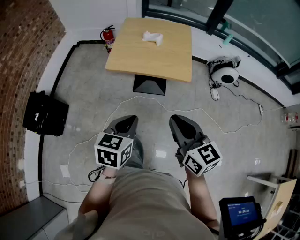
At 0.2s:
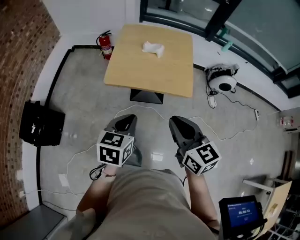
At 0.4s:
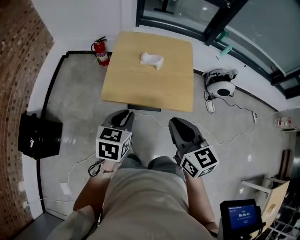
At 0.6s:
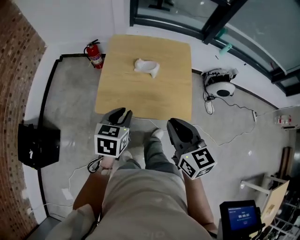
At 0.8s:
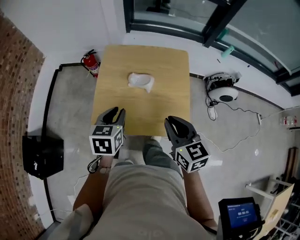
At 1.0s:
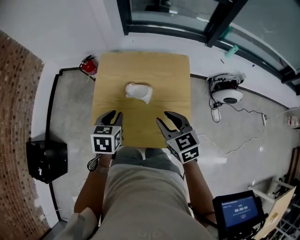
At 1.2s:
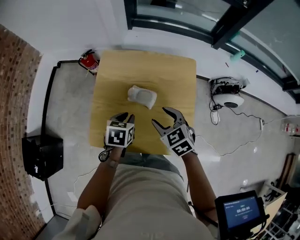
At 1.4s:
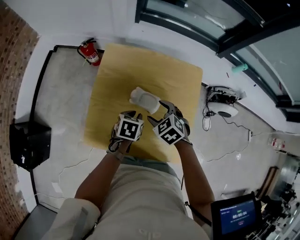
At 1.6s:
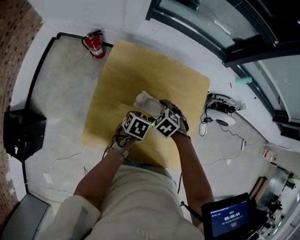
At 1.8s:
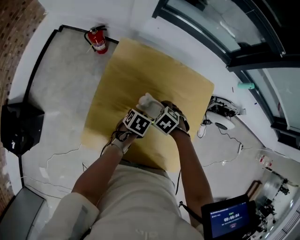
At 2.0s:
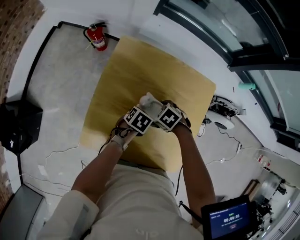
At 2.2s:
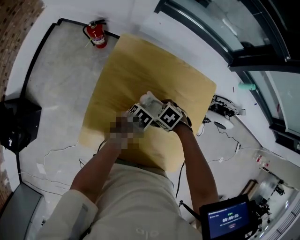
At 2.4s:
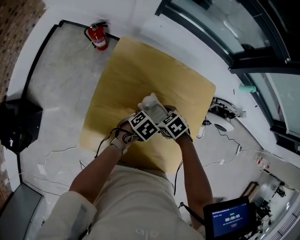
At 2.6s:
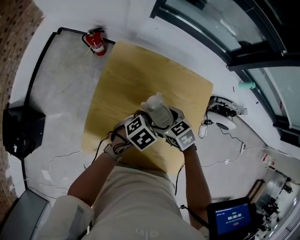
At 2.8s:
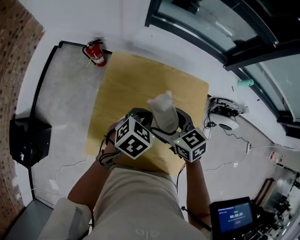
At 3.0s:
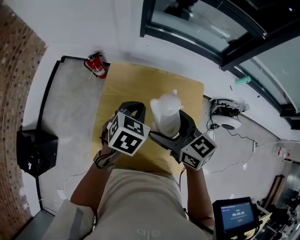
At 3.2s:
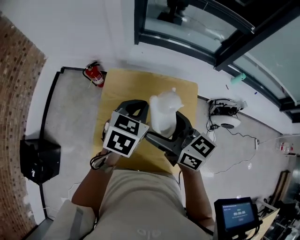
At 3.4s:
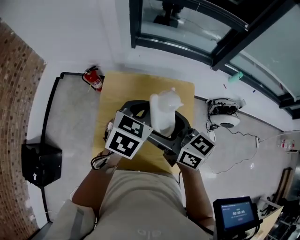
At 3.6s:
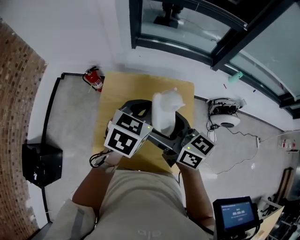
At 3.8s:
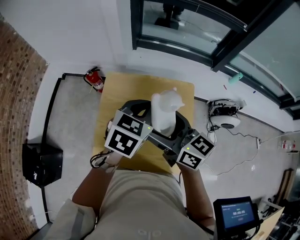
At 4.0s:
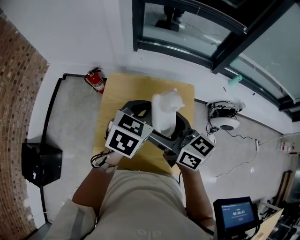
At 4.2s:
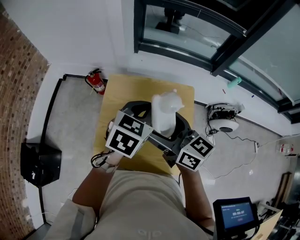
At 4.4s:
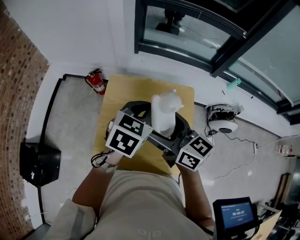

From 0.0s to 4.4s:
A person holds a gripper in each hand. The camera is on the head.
From 0.0s to 1.4s: Both grippers are carried forward, approximately 60 cm. The right gripper points its fingers approximately 40 degrees further downward, and opens its fingers. The left gripper rotates some 30 degrees, and opens.
From 1.4s to 3.0s: The two grippers go approximately 20 cm upward. The right gripper angles its fingers upward, by about 40 degrees, while the left gripper swivels approximately 20 degrees, and closes its fingers.
From 3.0s to 4.4s: The grippers both shift upward by some 10 cm.

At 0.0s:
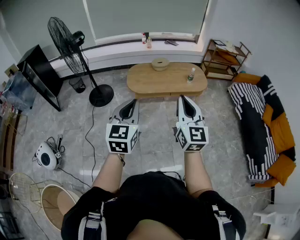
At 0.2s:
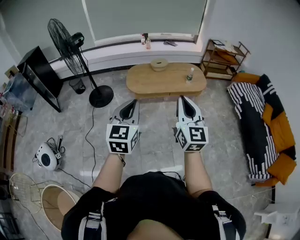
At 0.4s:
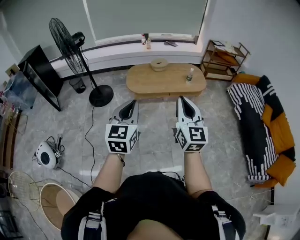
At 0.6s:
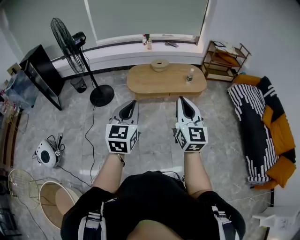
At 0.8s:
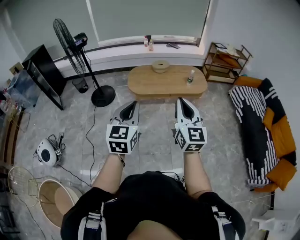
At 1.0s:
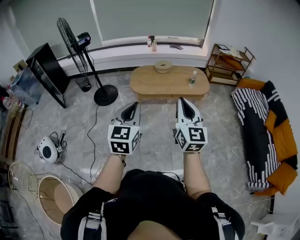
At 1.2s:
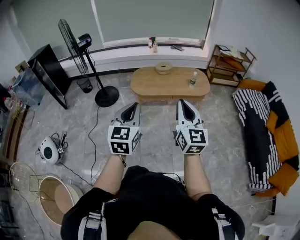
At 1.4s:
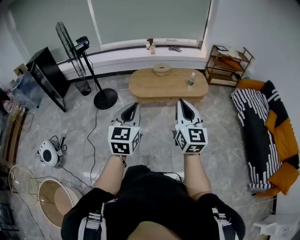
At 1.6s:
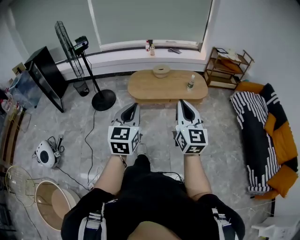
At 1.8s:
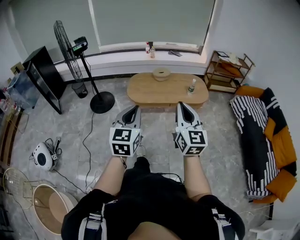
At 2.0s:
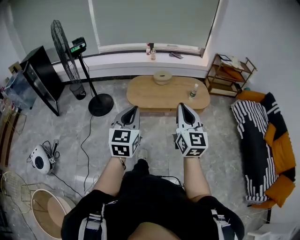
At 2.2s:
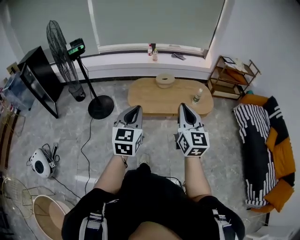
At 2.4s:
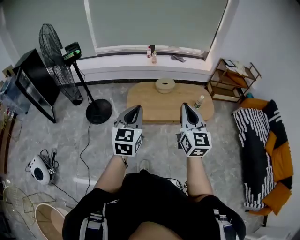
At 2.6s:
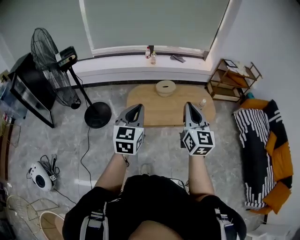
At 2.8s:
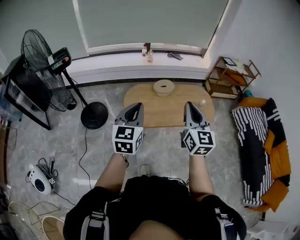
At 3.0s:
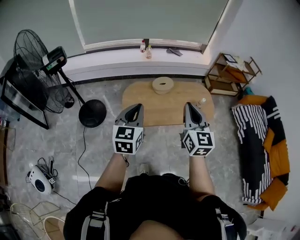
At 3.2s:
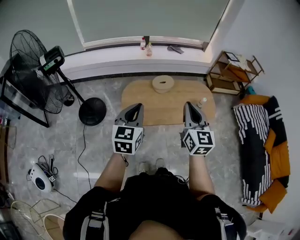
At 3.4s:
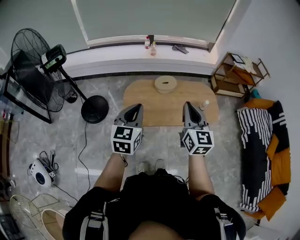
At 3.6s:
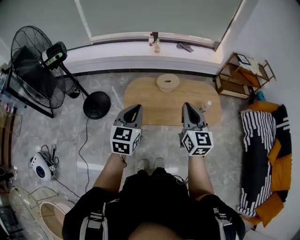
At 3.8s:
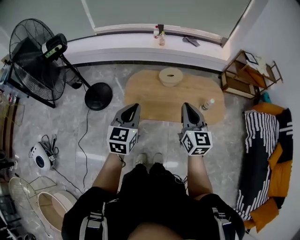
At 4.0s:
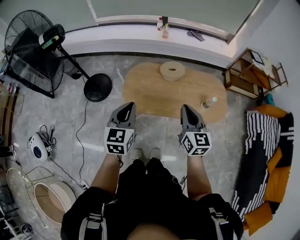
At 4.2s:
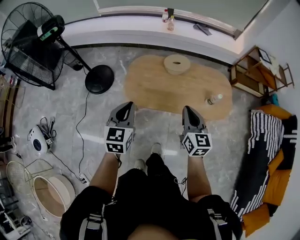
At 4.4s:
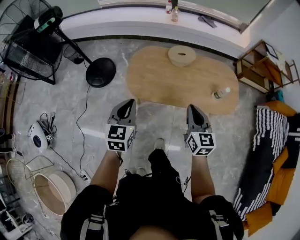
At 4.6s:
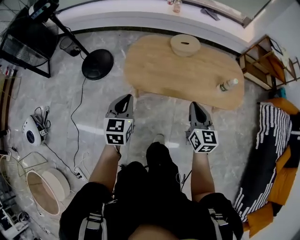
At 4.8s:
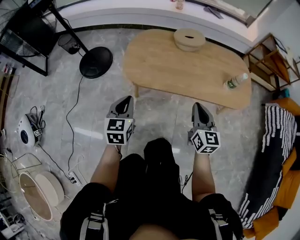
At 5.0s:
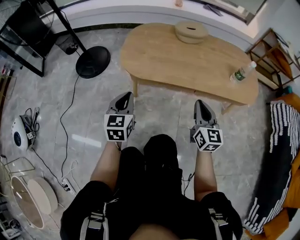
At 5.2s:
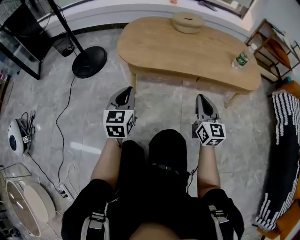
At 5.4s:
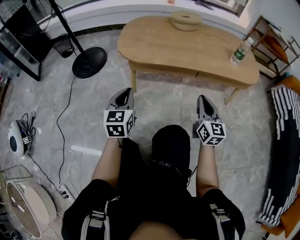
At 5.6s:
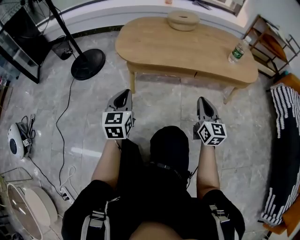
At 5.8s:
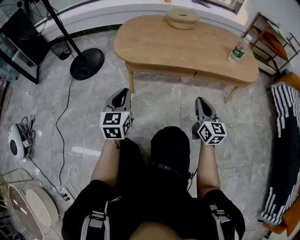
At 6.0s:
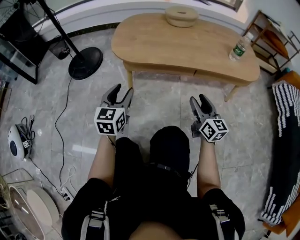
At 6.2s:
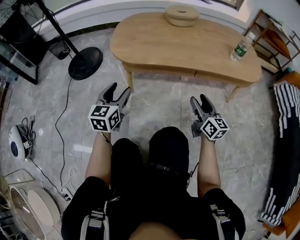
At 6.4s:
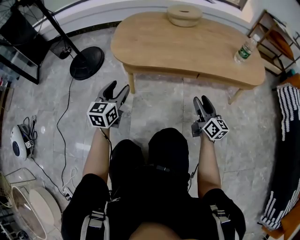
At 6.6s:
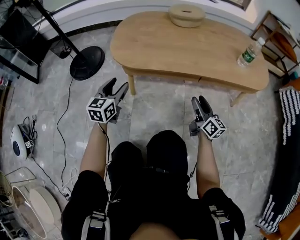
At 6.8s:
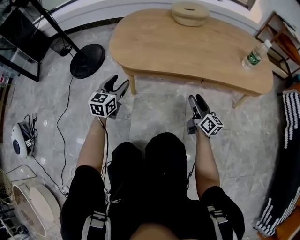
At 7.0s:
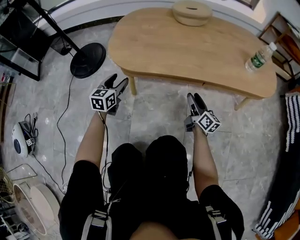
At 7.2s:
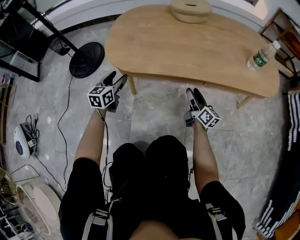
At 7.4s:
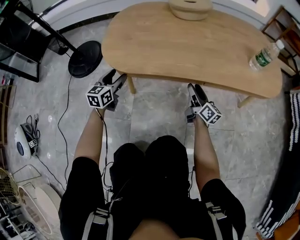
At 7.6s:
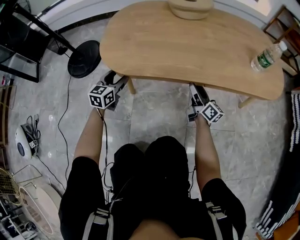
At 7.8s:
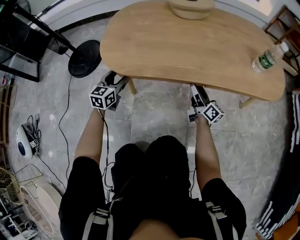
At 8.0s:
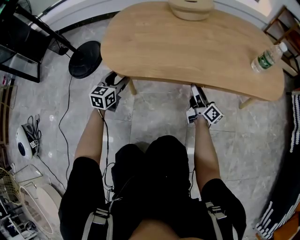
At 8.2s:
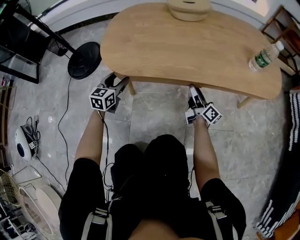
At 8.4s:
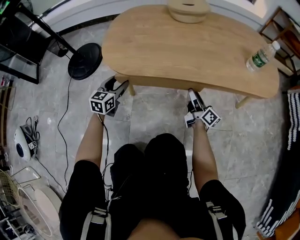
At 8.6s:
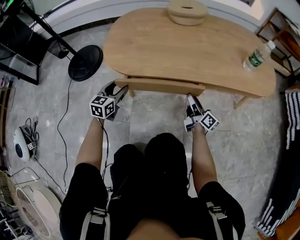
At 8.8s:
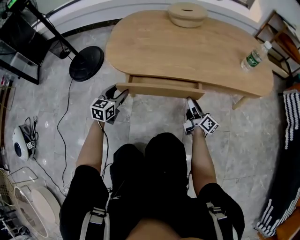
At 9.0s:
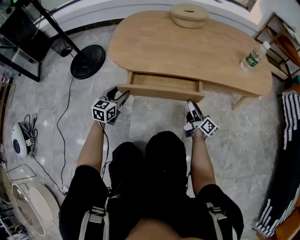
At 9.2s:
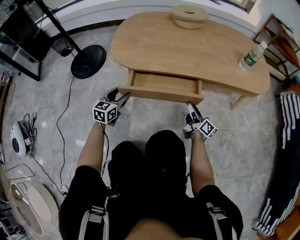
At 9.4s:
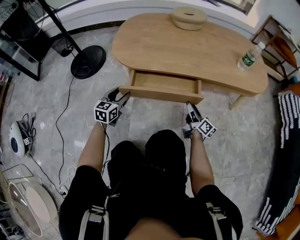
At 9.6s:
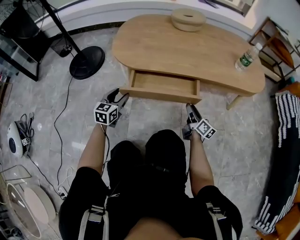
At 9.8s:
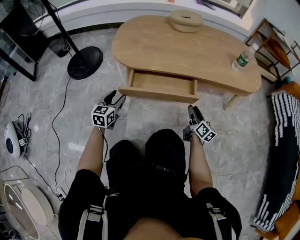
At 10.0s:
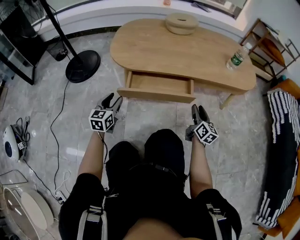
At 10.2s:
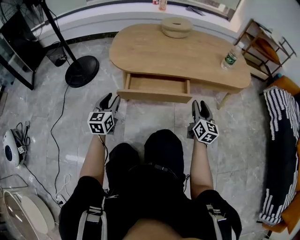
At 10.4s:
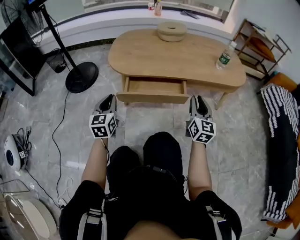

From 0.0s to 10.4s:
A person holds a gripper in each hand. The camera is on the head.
From 0.0s to 1.4s: Both grippers move to the right, approximately 10 cm.
From 1.4s to 3.0s: The two grippers travel together, forward, some 60 cm.
From 3.0s to 4.4s: The left gripper travels downward by about 25 cm, while the right gripper is displaced downward and to the right by approximately 35 cm, and changes its angle by about 20 degrees.
From 4.4s to 6.0s: Both grippers move downward, approximately 50 cm. The left gripper opens, while the right gripper opens up.
From 6.0s to 7.4s: The grippers both shift forward and downward by some 30 cm. The right gripper turns by about 30 degrees.
From 7.4s to 9.0s: Both grippers travel together backward, about 10 cm.
From 9.0s to 10.4s: Both grippers move upward and backward, about 25 cm. The right gripper twists some 50 degrees counterclockwise, seen from behind, and closes up, while the left gripper rotates about 20 degrees, and closes its fingers.

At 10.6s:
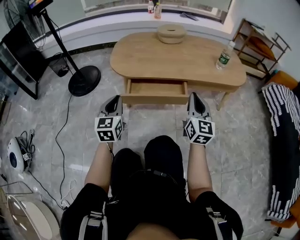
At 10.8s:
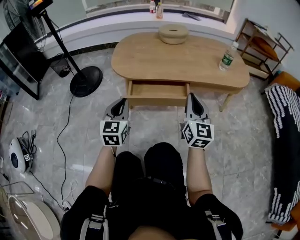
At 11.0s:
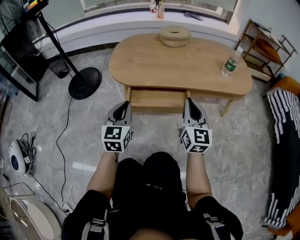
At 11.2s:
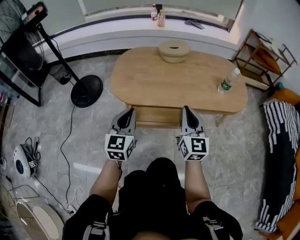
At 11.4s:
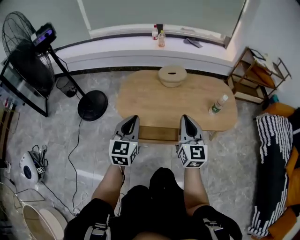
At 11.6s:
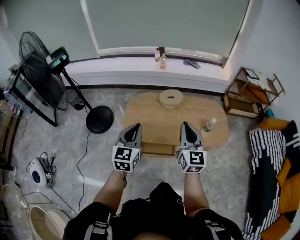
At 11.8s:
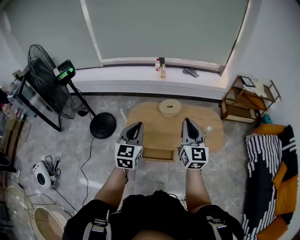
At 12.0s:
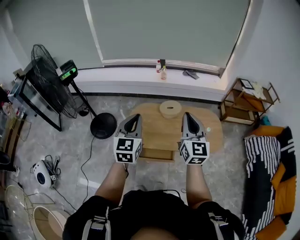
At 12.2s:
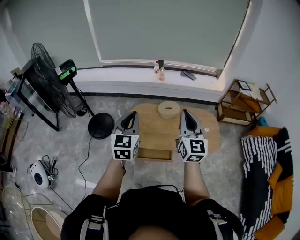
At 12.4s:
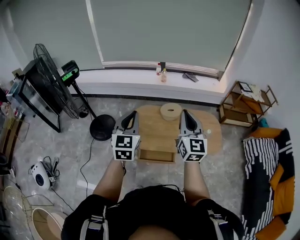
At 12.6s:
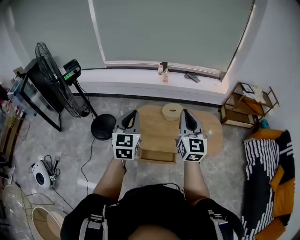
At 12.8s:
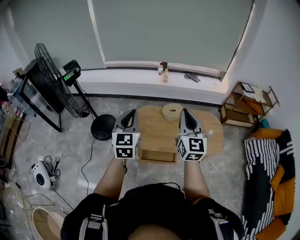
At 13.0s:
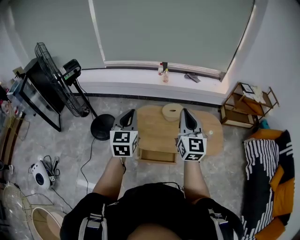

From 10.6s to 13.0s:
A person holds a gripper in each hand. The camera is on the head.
From 10.6s to 11.8s: The two grippers go roughly 70 cm upward.
From 11.8s to 13.0s: The grippers both shift to the left and upward by roughly 10 cm.

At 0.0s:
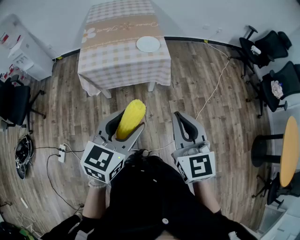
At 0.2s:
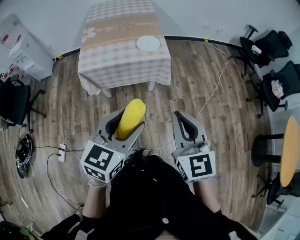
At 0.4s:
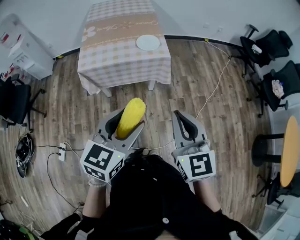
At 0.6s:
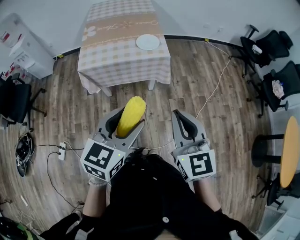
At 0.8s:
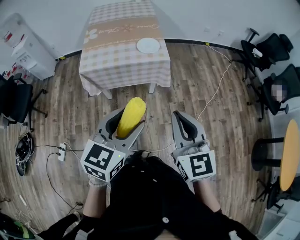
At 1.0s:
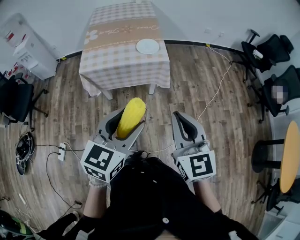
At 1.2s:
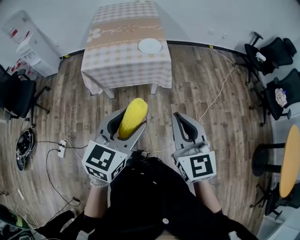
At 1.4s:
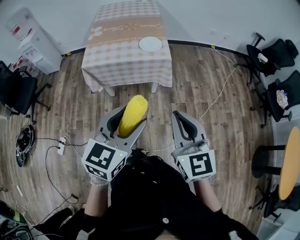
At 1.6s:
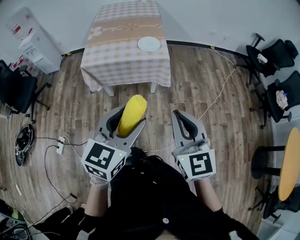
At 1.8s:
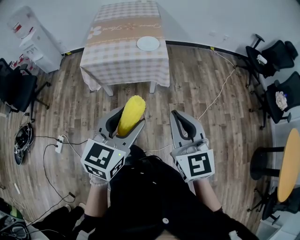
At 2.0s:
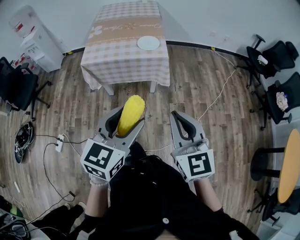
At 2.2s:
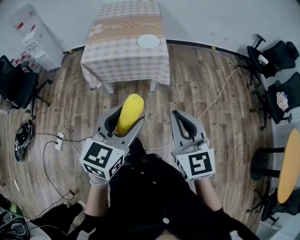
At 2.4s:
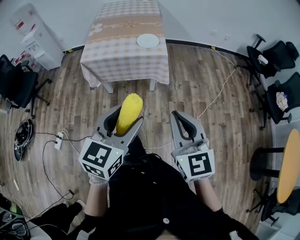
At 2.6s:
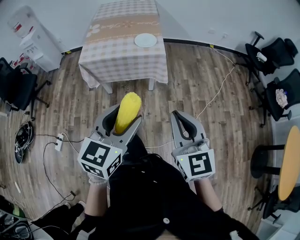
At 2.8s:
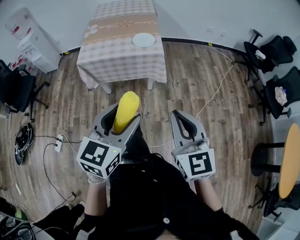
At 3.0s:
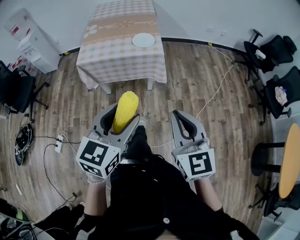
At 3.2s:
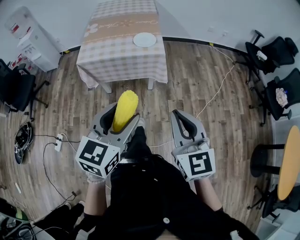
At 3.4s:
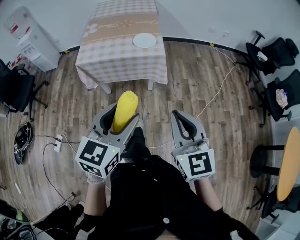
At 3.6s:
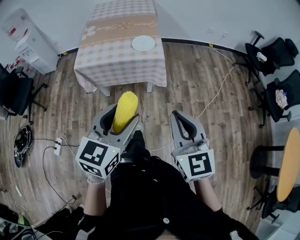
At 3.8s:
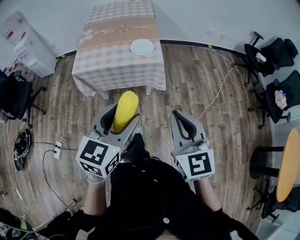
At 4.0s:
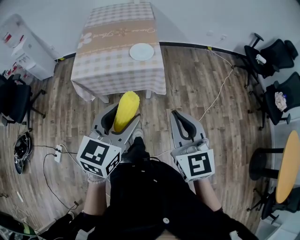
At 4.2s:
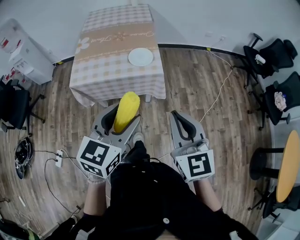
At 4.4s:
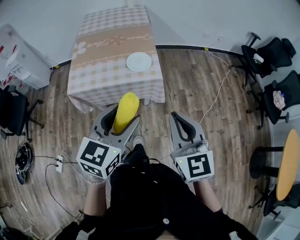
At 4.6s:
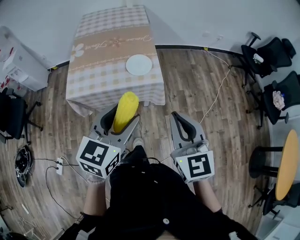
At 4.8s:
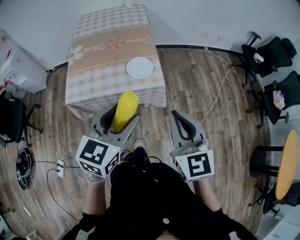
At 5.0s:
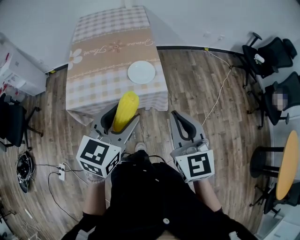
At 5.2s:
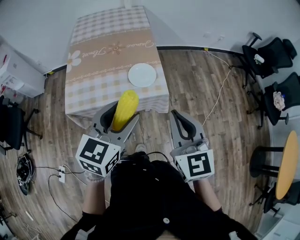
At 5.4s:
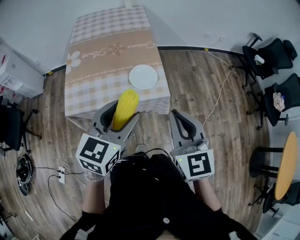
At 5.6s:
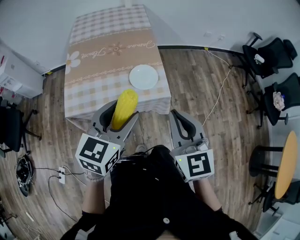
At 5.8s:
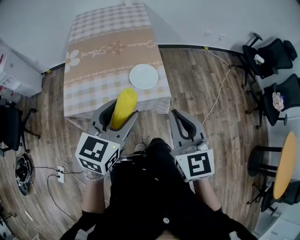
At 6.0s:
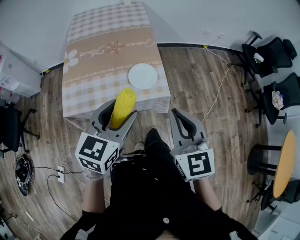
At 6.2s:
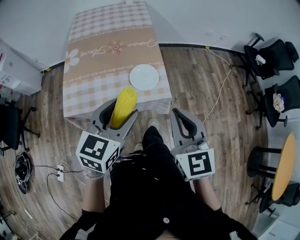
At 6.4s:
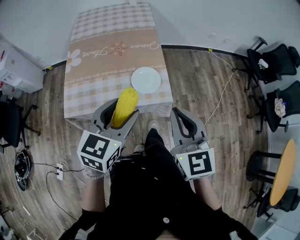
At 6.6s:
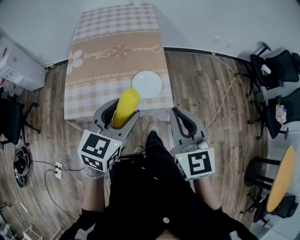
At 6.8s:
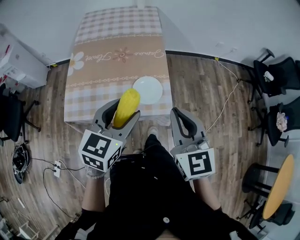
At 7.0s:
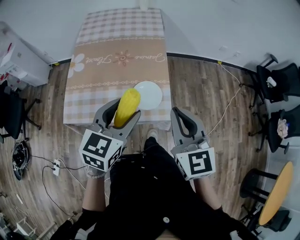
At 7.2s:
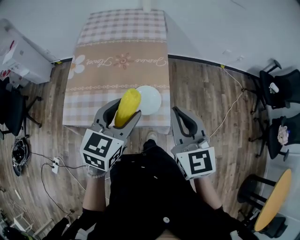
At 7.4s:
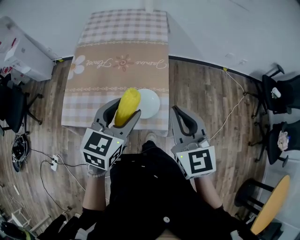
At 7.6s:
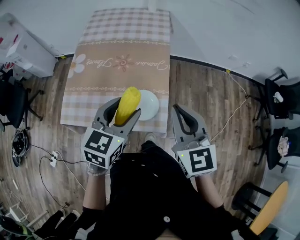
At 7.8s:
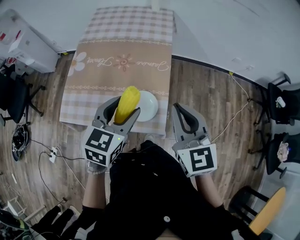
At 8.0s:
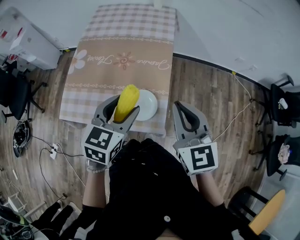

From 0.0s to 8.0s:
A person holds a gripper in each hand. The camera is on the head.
From 0.0s to 1.6s: Both grippers move to the right, roughly 5 cm.
From 1.6s to 3.2s: The grippers move only a little.
From 3.2s to 4.8s: Both grippers move forward, some 25 cm.
From 4.8s to 6.4s: The two grippers go roughly 15 cm forward and to the left.
From 6.4s to 8.0s: The right gripper is displaced forward by about 20 cm. The left gripper shifts approximately 20 cm forward and to the right.
